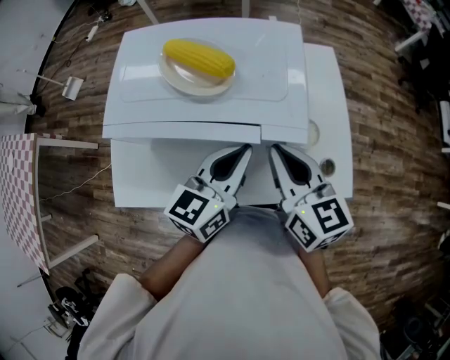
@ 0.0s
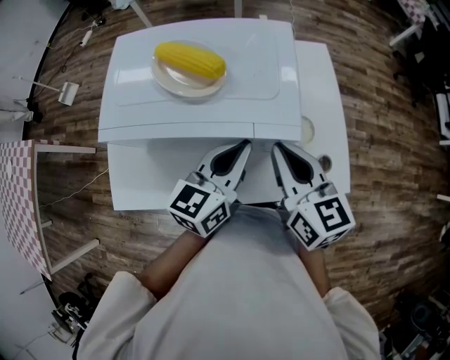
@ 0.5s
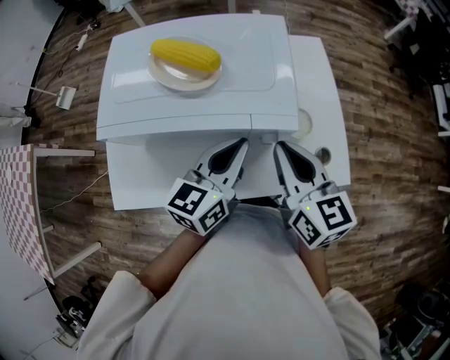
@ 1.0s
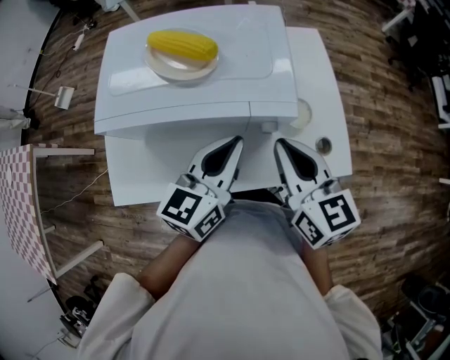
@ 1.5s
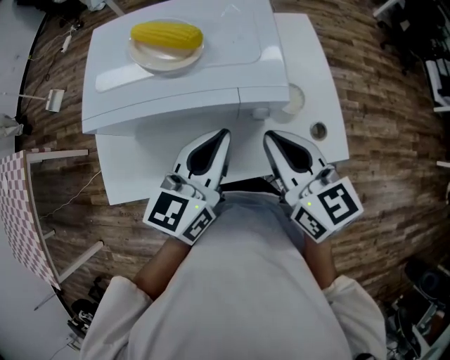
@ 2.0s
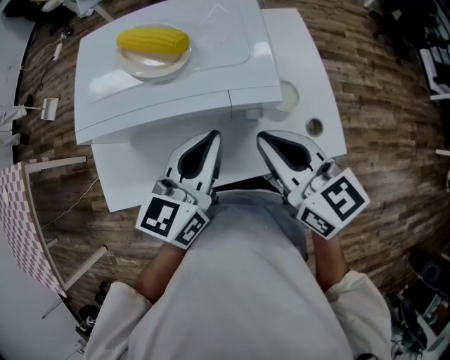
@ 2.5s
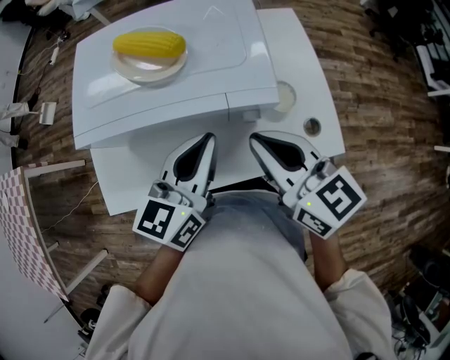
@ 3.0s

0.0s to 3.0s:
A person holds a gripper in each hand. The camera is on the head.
0.0s to 3.0s: There are only small adjustments of the grippers.

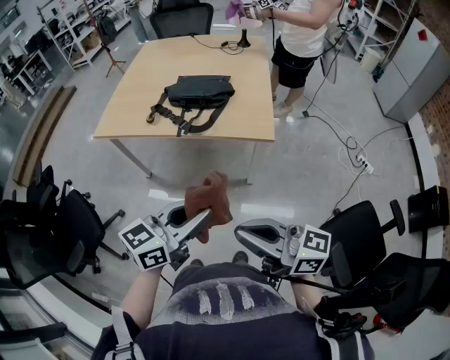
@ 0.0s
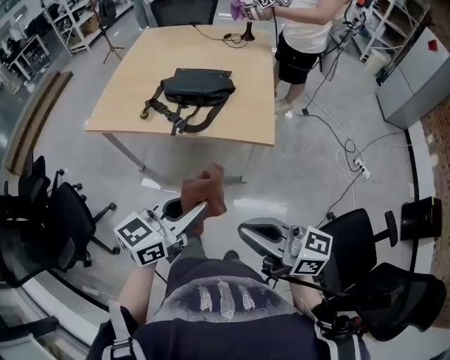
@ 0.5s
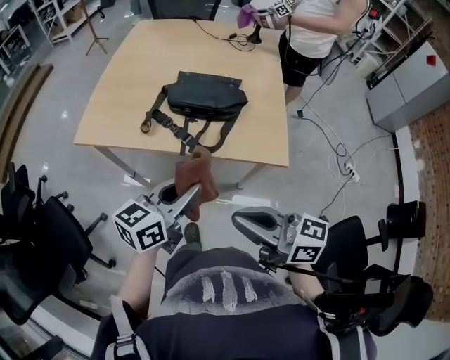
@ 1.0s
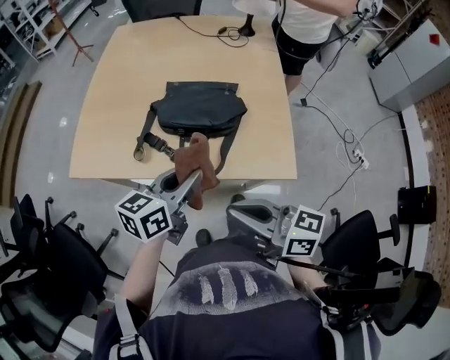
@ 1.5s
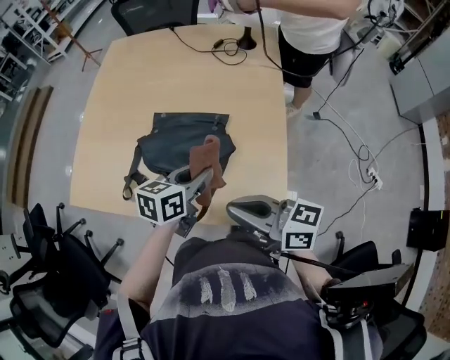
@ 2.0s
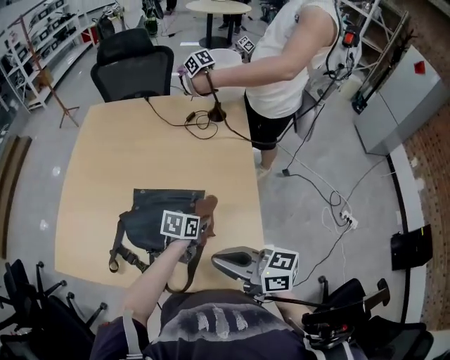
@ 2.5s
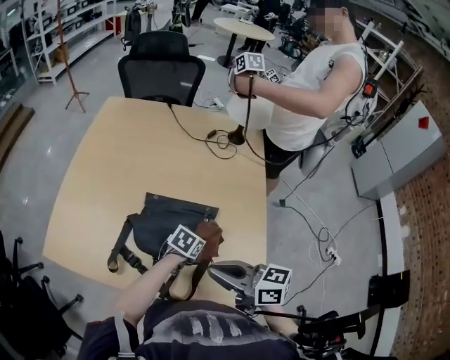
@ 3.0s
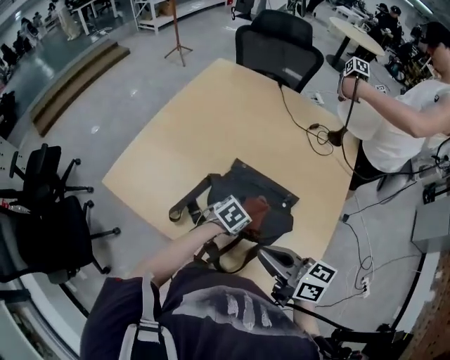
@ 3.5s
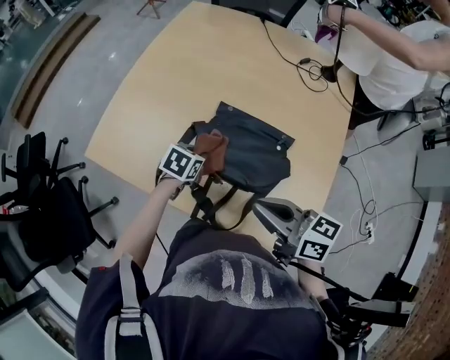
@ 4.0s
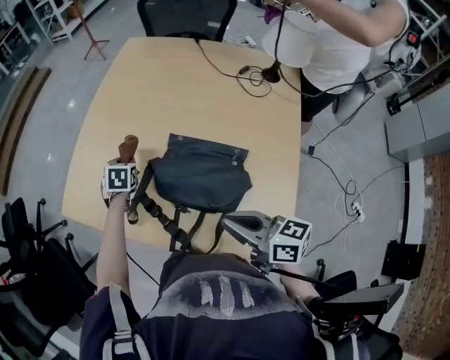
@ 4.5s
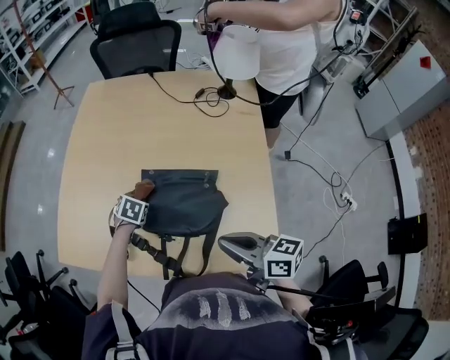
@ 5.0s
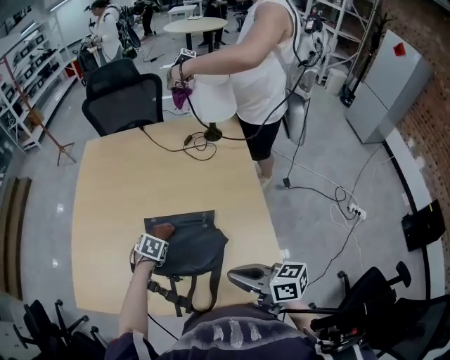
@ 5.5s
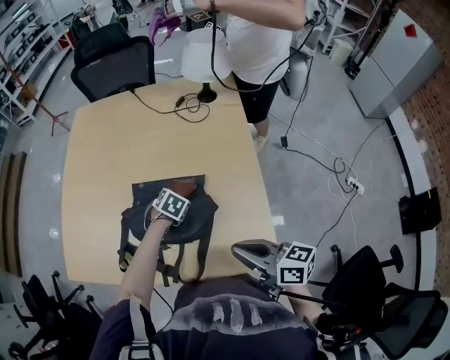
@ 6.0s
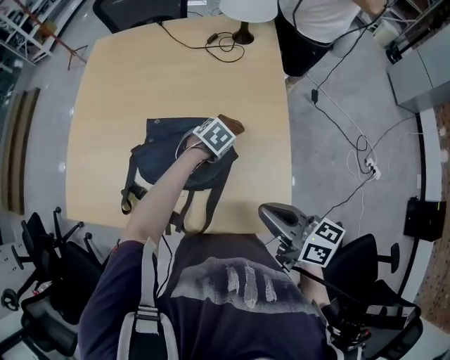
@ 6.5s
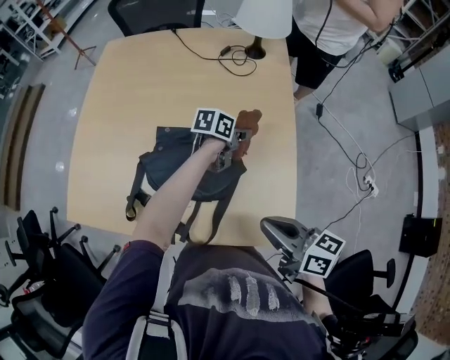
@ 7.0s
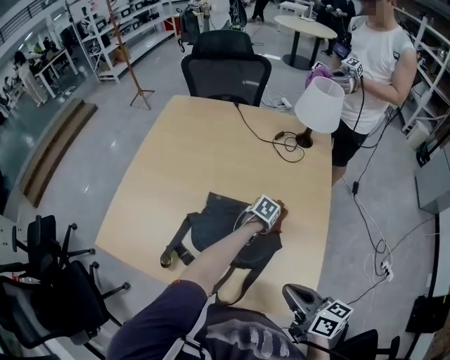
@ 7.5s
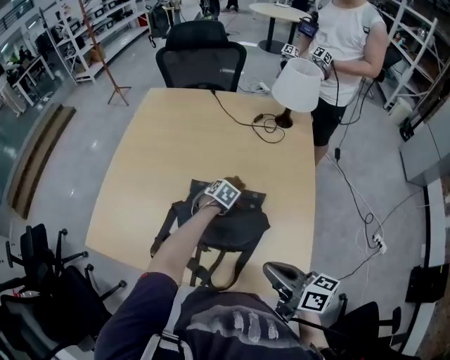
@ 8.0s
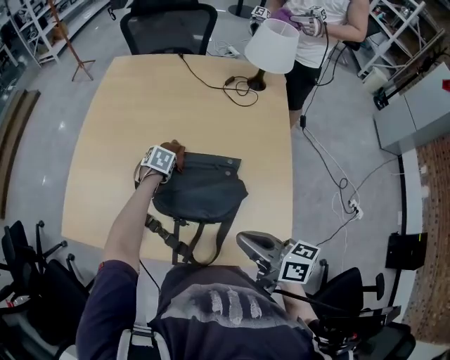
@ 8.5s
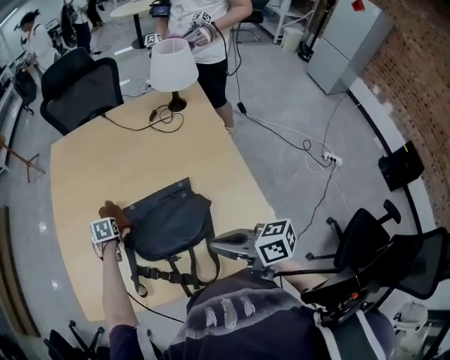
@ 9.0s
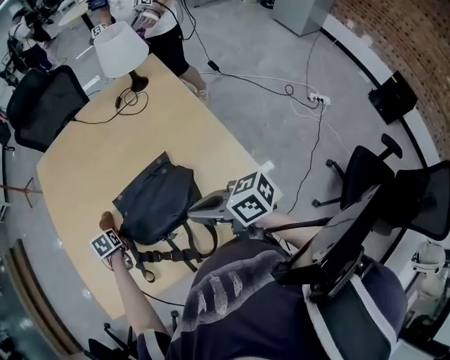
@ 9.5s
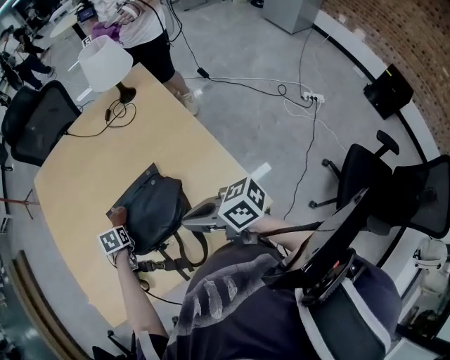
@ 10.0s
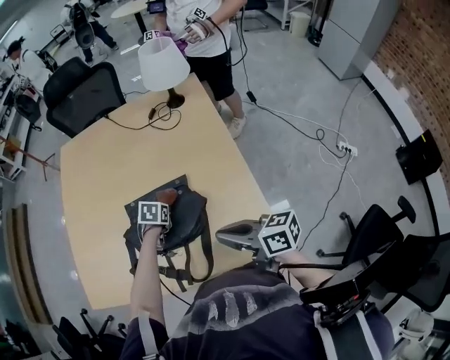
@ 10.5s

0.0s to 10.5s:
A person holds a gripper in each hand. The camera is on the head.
0.0s to 2.0s: Both grippers are carried forward, some 50 cm. The left gripper swivels about 30 degrees.
2.0s to 4.0s: The left gripper shifts by approximately 25 cm, and turns by roughly 30 degrees; the right gripper moves approximately 15 cm.
4.0s to 6.5s: The right gripper moves some 15 cm, and swivels approximately 30 degrees. Meanwhile the left gripper ends up some 30 cm from where it was, and rotates some 40 degrees.
6.5s to 8.5s: The left gripper moves about 5 cm upward and comes back, and swivels approximately 30 degrees. Meanwhile the right gripper ends up about 10 cm from where it was.
8.5s to 10.5s: The right gripper heads to the right, covering roughly 5 cm. The left gripper goes about 15 cm backward and to the right.

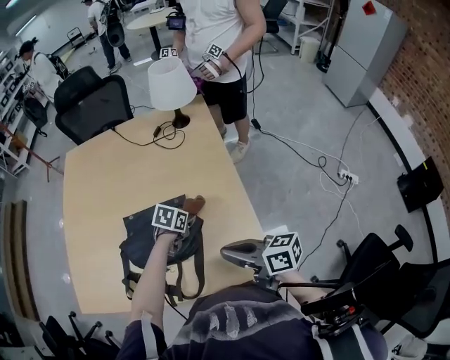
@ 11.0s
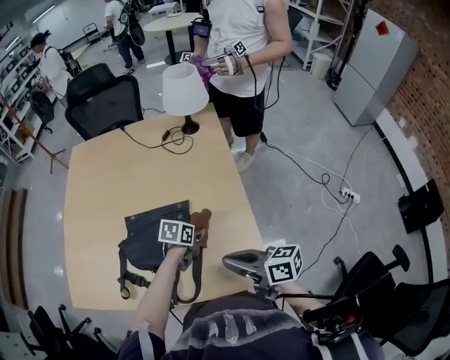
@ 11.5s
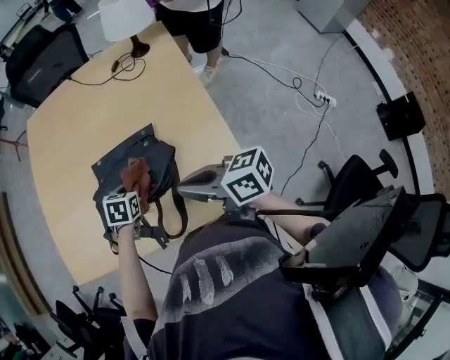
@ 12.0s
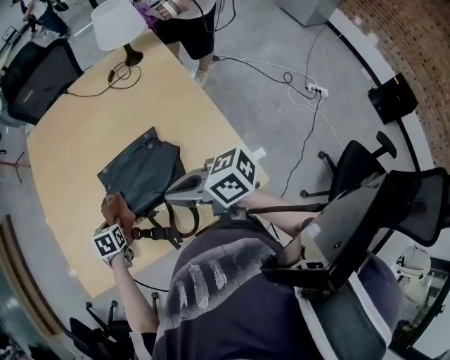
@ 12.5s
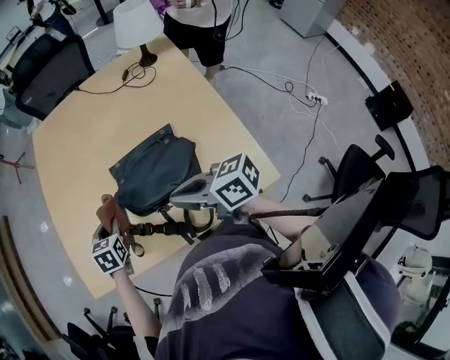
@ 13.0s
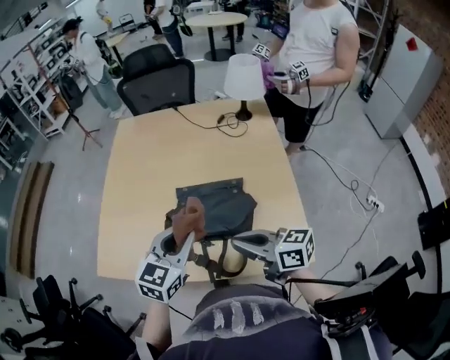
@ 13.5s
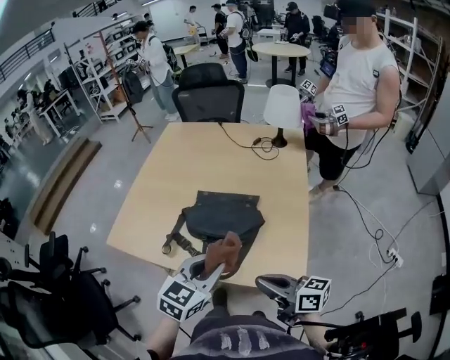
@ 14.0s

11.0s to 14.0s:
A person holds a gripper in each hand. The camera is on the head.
11.0s to 12.5s: The left gripper changes place by about 35 cm, and swivels roughly 30 degrees. Meanwhile the right gripper changes place by roughly 15 cm.
12.5s to 14.0s: The right gripper is displaced backward by roughly 15 cm; the left gripper is displaced backward, upward and to the right by some 40 cm, and angles its fingers upward, by some 40 degrees.

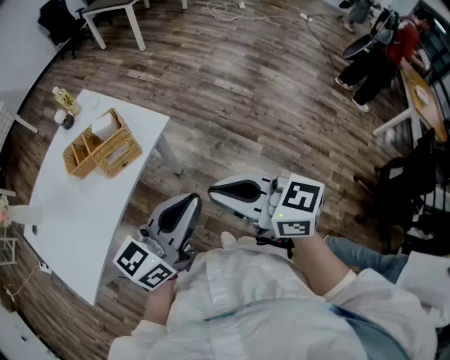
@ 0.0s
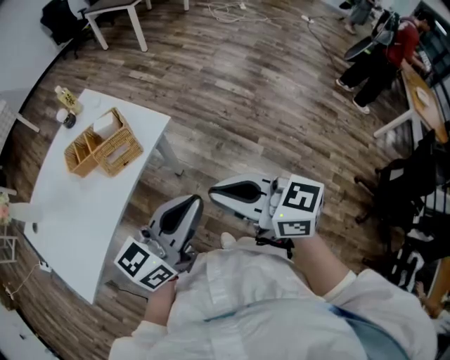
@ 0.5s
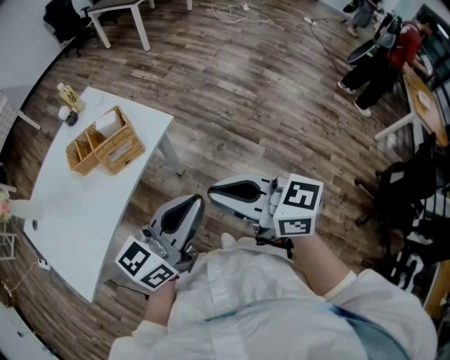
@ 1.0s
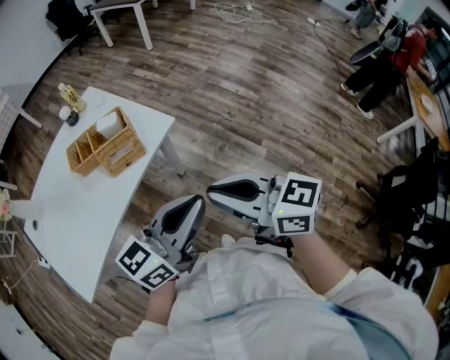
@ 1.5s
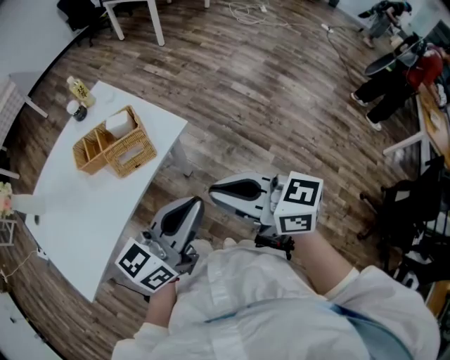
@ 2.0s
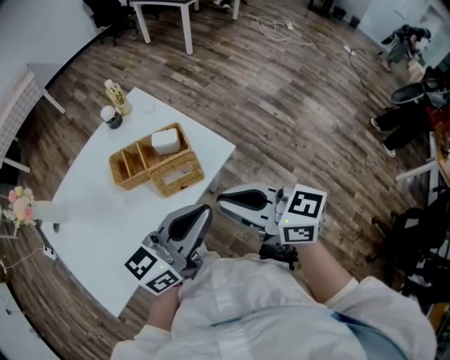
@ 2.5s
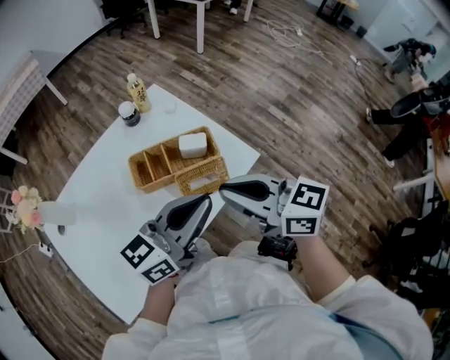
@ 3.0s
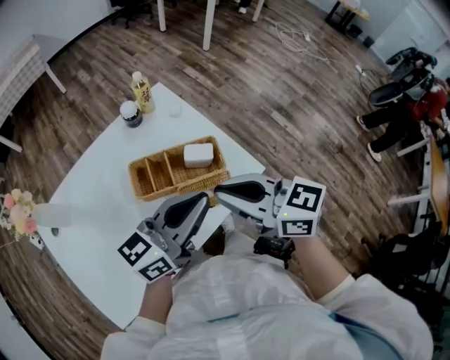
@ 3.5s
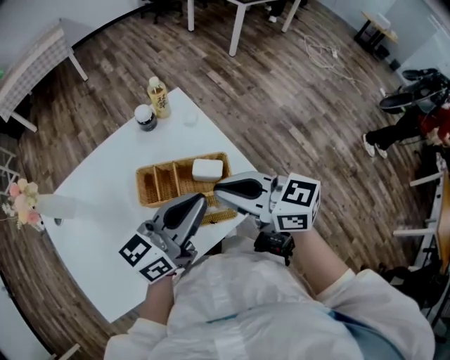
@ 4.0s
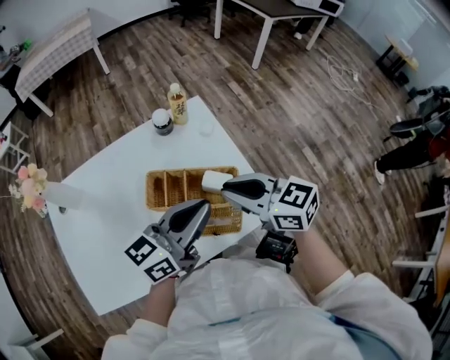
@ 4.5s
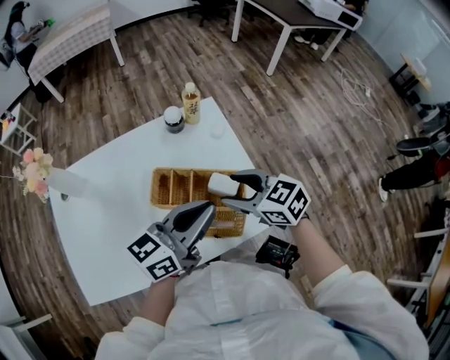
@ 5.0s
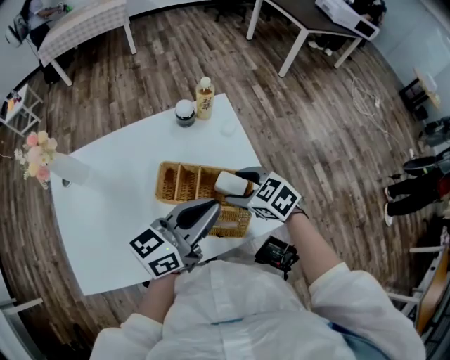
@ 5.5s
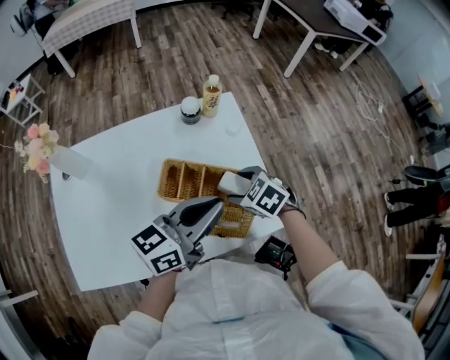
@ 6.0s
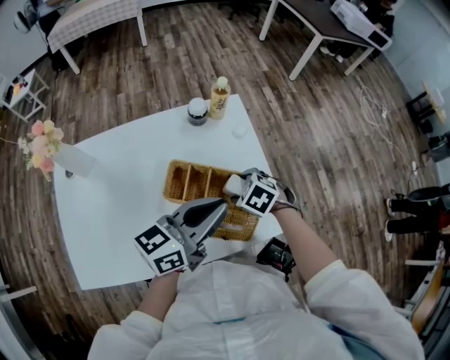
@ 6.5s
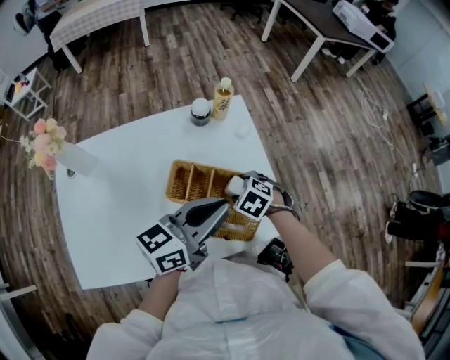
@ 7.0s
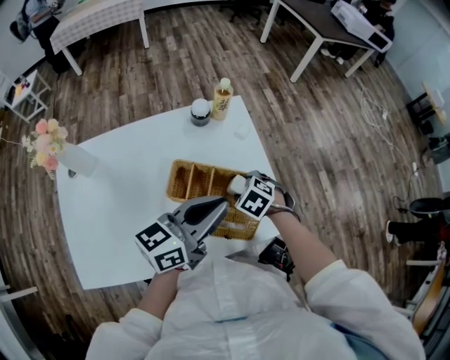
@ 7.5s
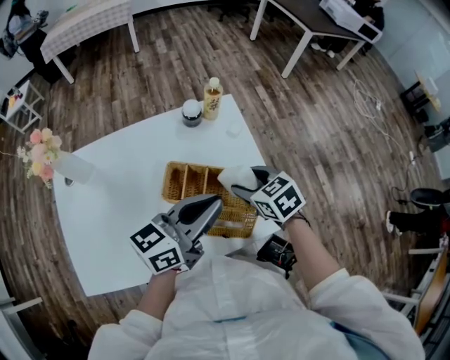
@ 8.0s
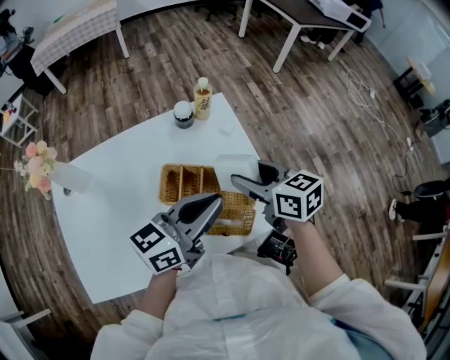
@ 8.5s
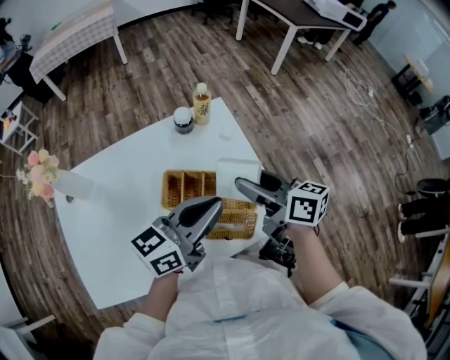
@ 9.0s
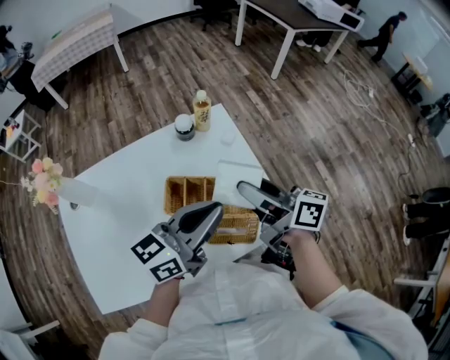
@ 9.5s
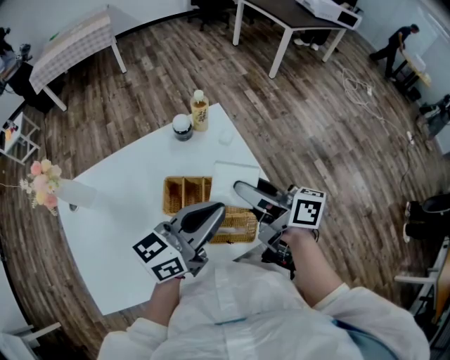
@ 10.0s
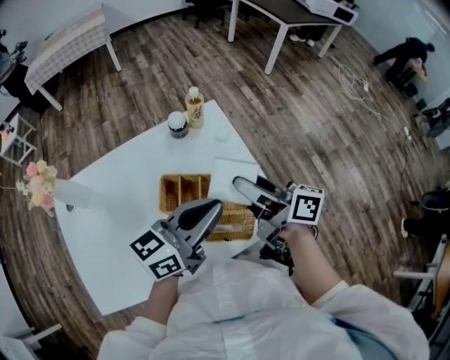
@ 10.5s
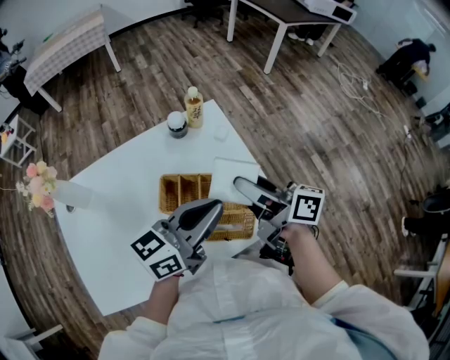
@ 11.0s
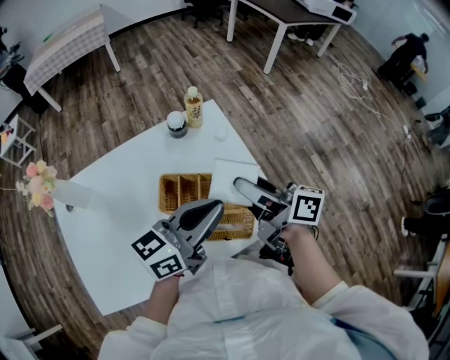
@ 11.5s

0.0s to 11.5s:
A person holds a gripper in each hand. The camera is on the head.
0.0s to 2.0s: The right gripper shifts by some 5 cm.
2.0s to 4.0s: The two grippers go approximately 35 cm forward and to the left.
4.0s to 6.0s: The right gripper is displaced downward and forward by roughly 20 cm, points its fingers about 50 degrees further downward, and opens up.
6.0s to 7.5s: The grippers make only small movements.
7.5s to 9.5s: The right gripper travels upward by some 20 cm, and points its fingers approximately 70 degrees further upward.
9.5s to 11.5s: Both grippers stay about where they are.
